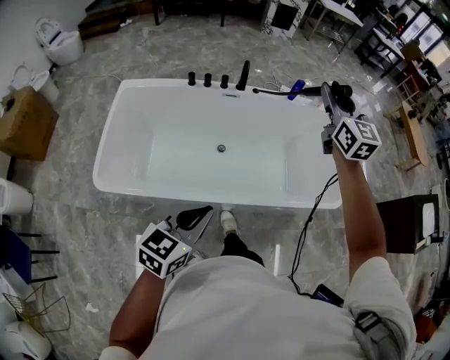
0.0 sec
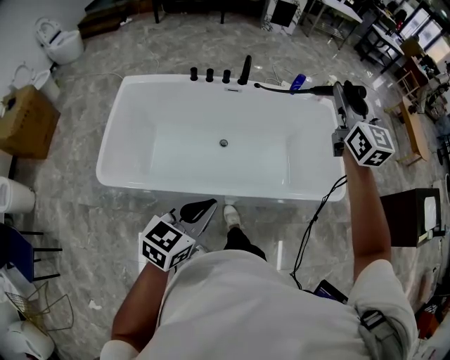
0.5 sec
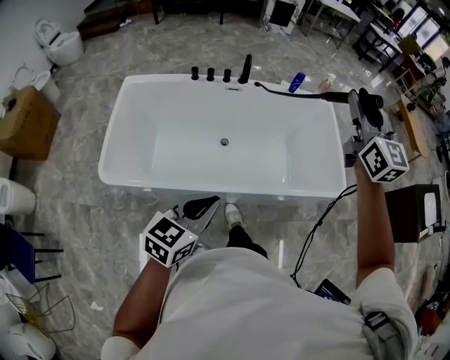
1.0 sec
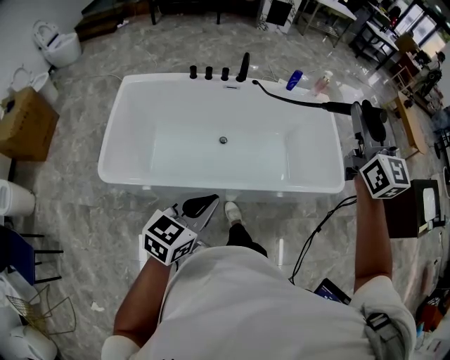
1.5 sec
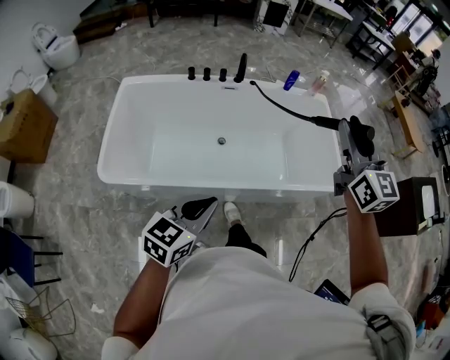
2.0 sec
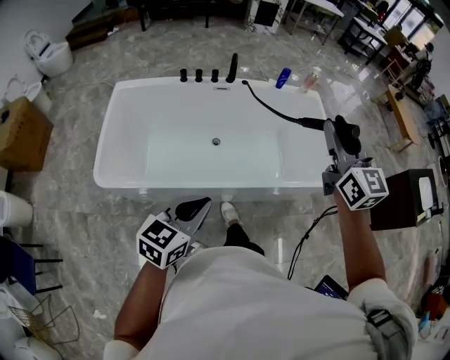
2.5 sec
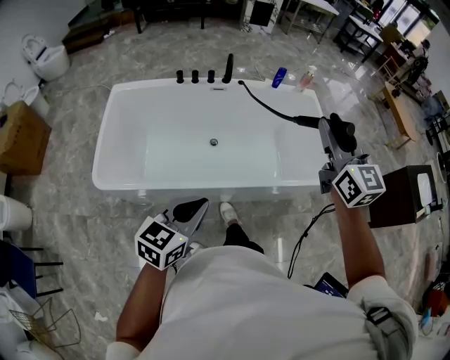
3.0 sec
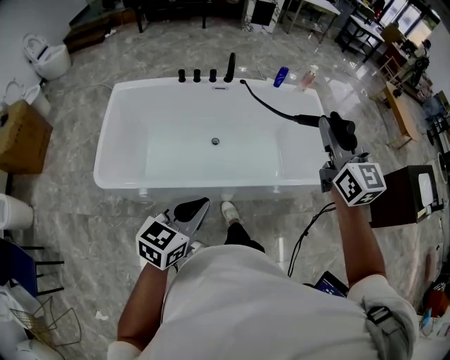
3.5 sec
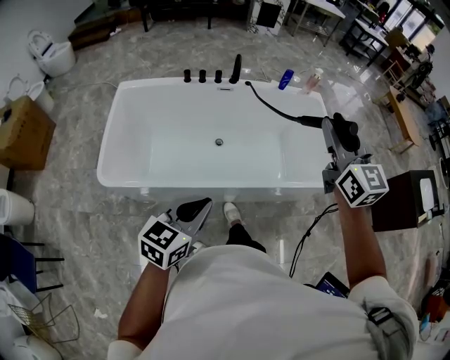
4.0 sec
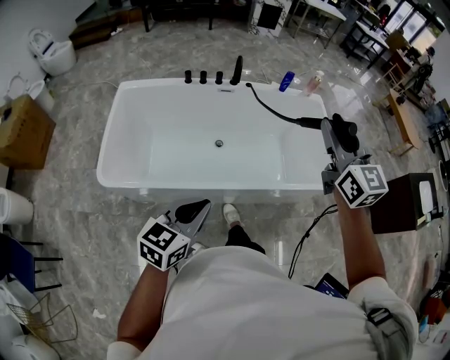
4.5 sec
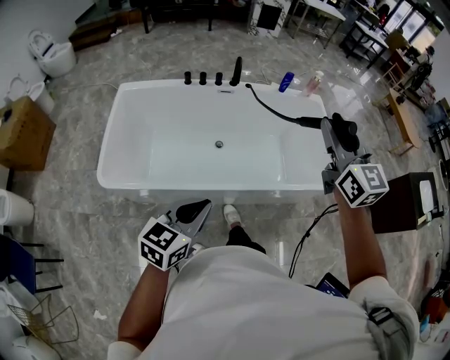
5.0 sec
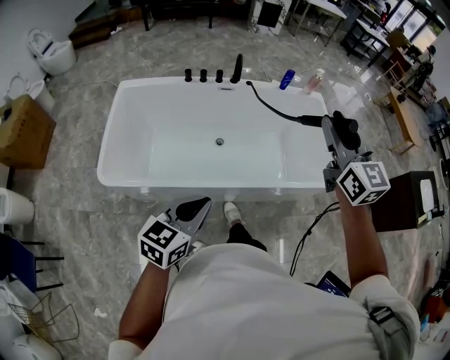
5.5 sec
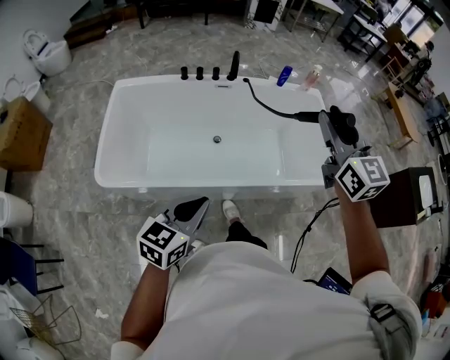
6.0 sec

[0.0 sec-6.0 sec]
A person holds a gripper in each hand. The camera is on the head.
0.0 sec to 2.0 sec: The right gripper shifts some 20 cm backward; the left gripper is displaced backward by approximately 5 cm.
2.0 sec to 4.0 sec: The grippers move only a little.
4.0 sec to 6.0 sec: Neither gripper changes place.

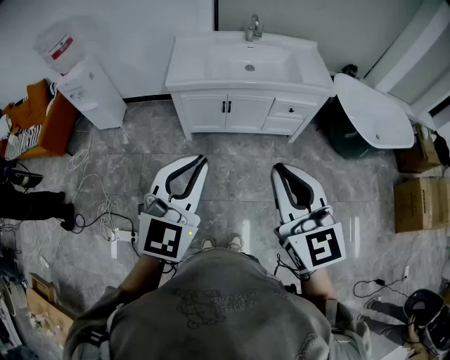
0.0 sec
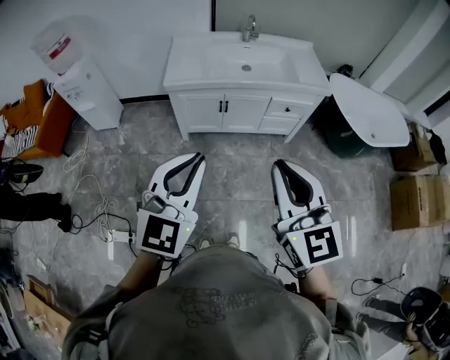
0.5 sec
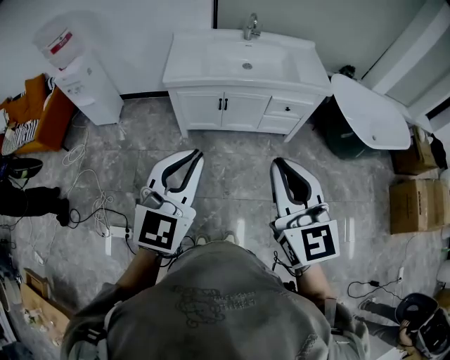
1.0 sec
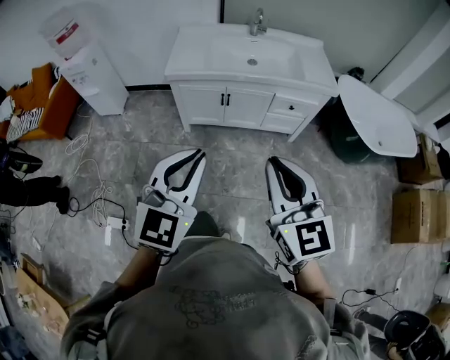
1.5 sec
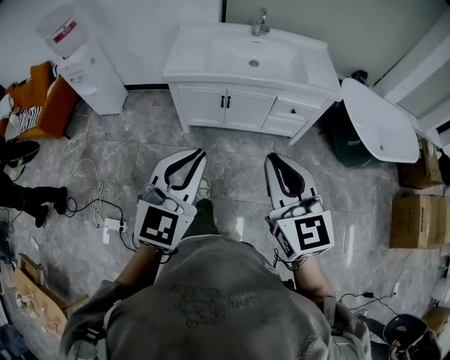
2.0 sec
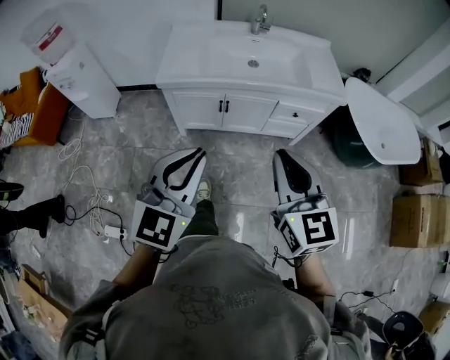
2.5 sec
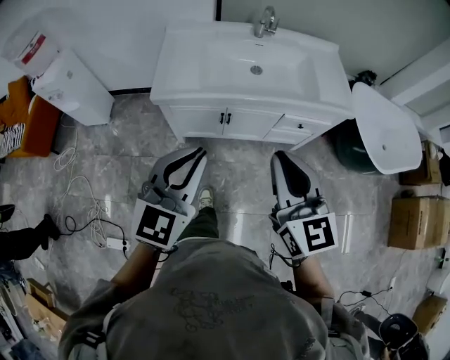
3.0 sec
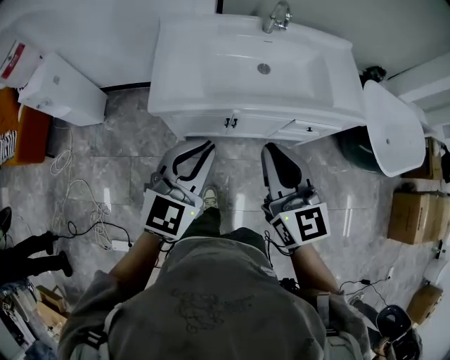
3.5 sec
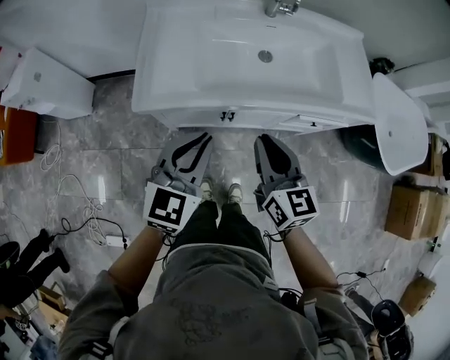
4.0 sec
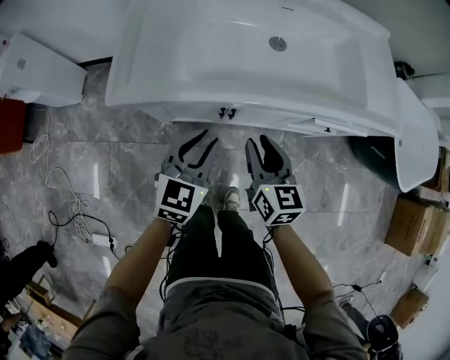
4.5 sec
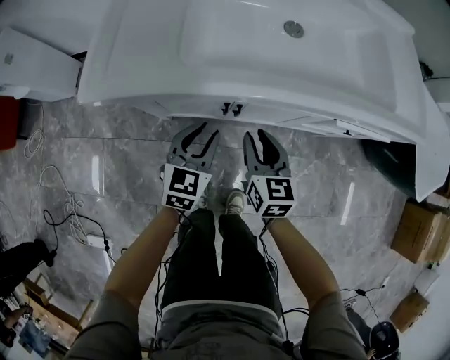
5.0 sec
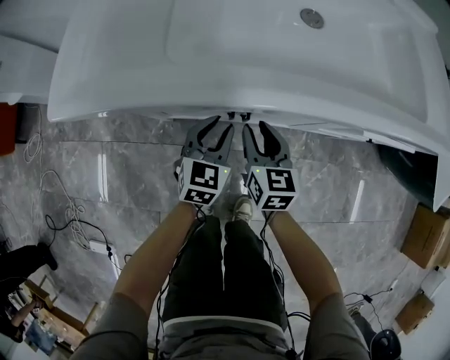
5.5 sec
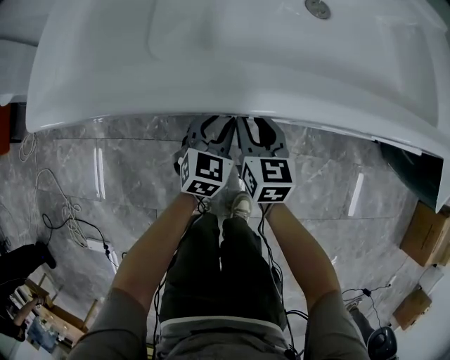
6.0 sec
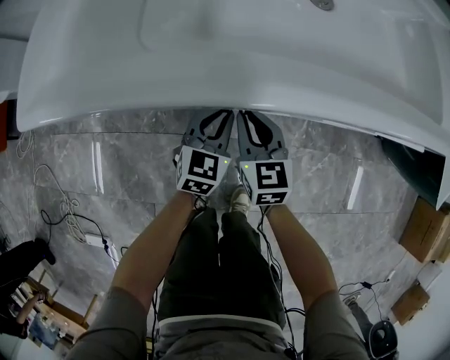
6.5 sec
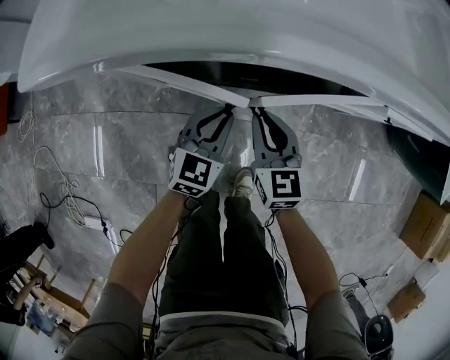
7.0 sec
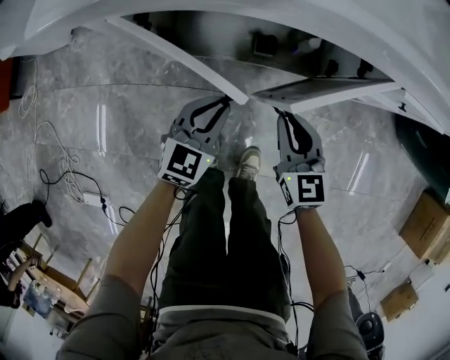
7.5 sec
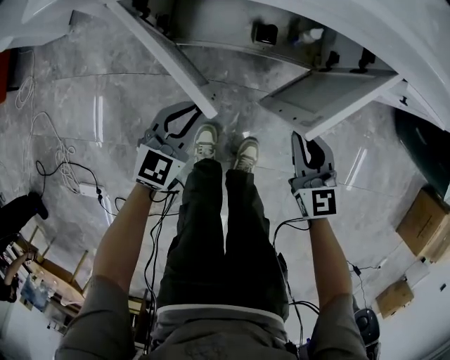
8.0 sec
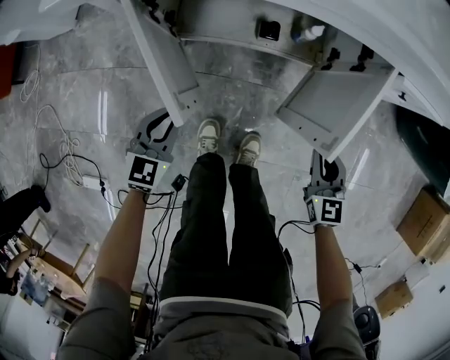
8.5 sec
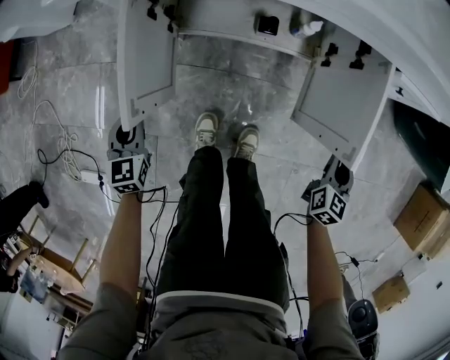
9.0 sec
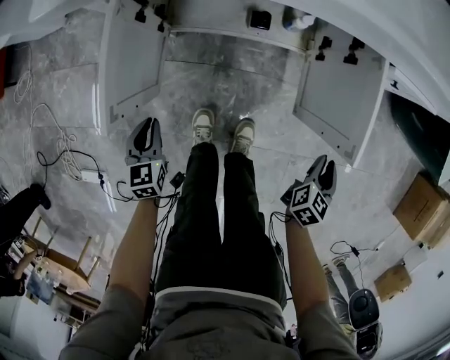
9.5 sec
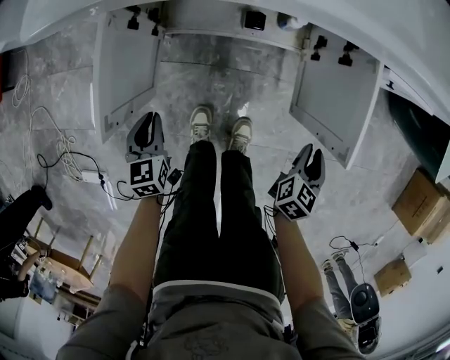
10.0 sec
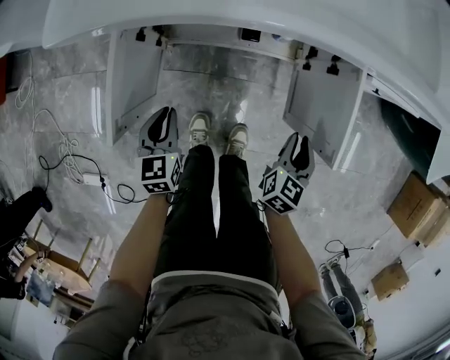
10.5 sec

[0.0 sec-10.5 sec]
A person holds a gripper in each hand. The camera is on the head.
0.0 sec to 2.0 sec: The right gripper travels forward and downward by approximately 10 cm; the left gripper moves about 10 cm.
2.0 sec to 4.0 sec: Both grippers are carried forward, approximately 40 cm. The right gripper goes some 20 cm downward, and swivels roughly 20 degrees.
4.0 sec to 6.5 sec: Both grippers travel together downward, approximately 40 cm. The right gripper opens, then closes once more.
6.5 sec to 8.5 sec: The left gripper shifts approximately 25 cm backward and to the left, while the right gripper shifts approximately 30 cm backward and to the right.
8.5 sec to 10.5 sec: The left gripper reaches about 10 cm to the left, then returns, and swivels approximately 30 degrees; the right gripper travels to the right and back again, approximately 10 cm each way, and turns by some 40 degrees.

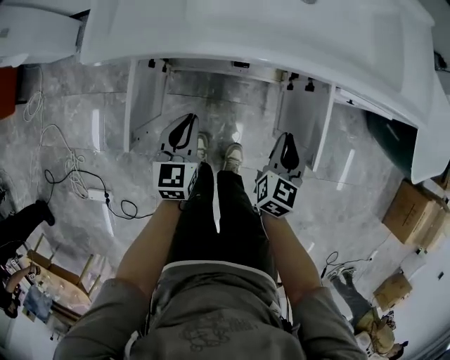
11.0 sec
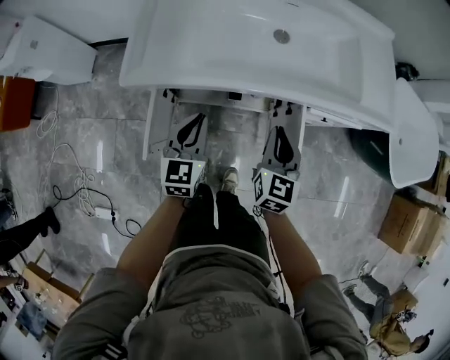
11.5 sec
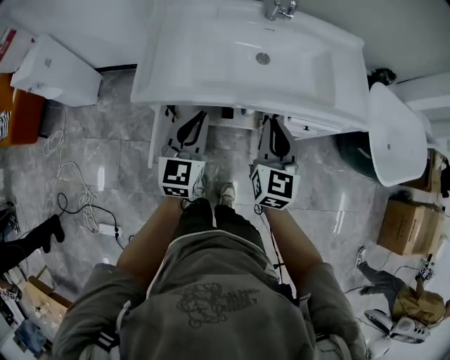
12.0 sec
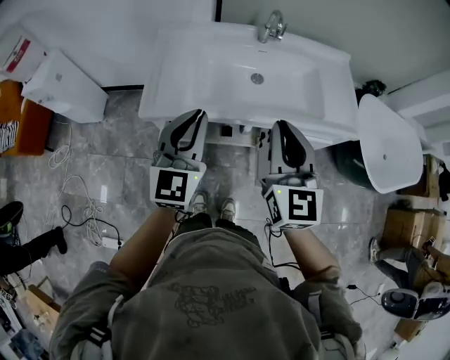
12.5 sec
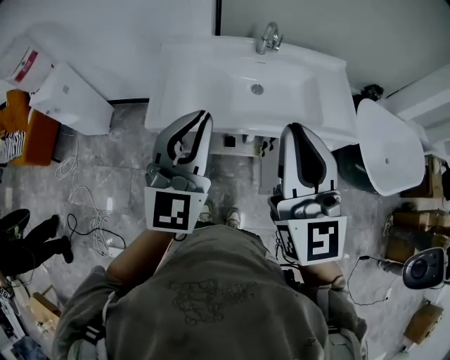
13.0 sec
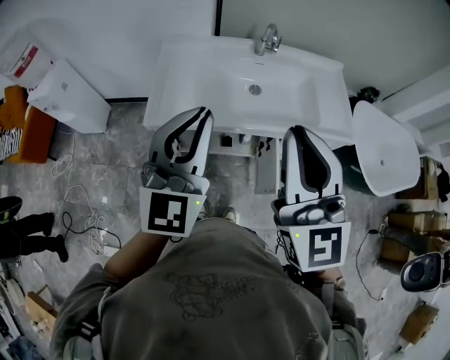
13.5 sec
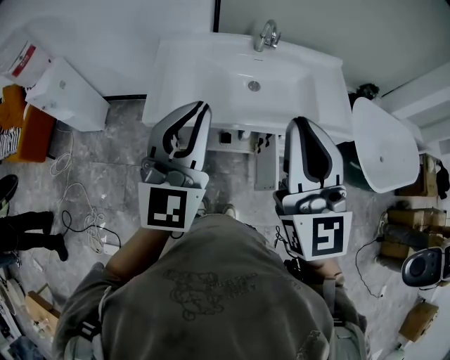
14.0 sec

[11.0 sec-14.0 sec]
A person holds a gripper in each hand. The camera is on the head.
11.0 sec to 12.5 sec: The two grippers go about 40 cm upward. The right gripper turns by about 40 degrees, while the left gripper rotates about 30 degrees.
12.5 sec to 14.0 sec: The two grippers go approximately 15 cm upward and backward.

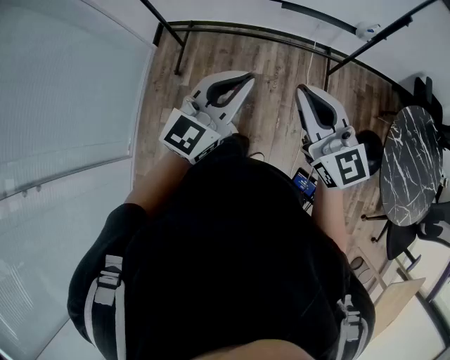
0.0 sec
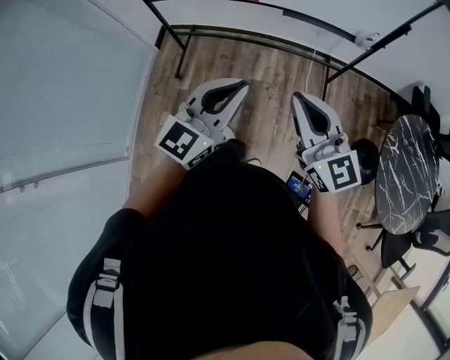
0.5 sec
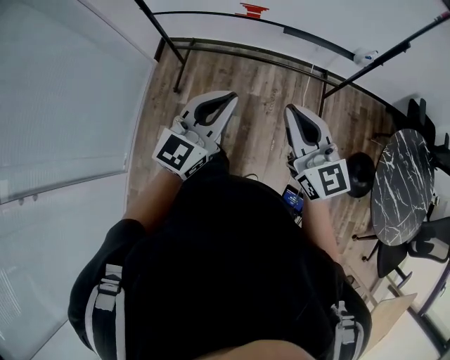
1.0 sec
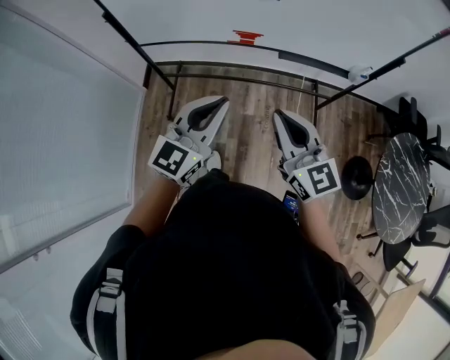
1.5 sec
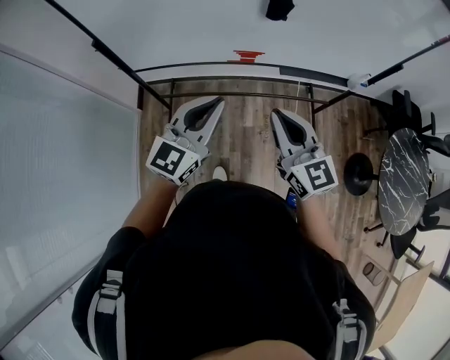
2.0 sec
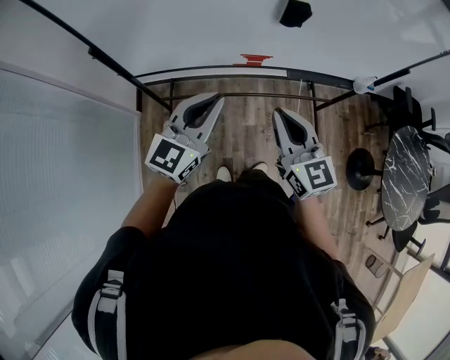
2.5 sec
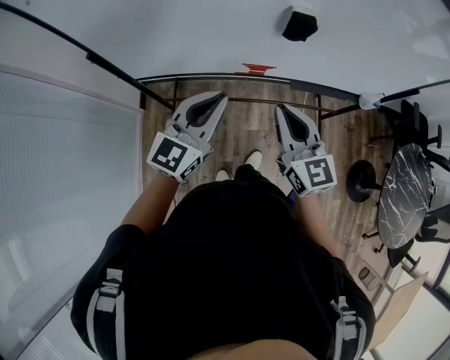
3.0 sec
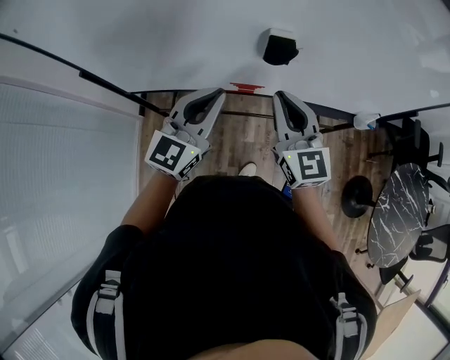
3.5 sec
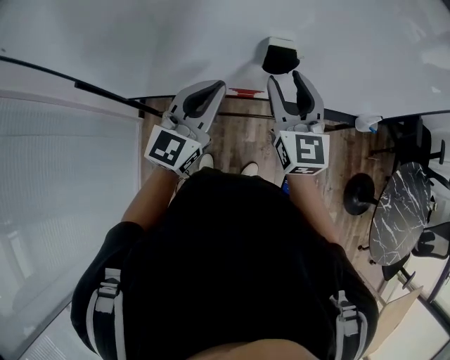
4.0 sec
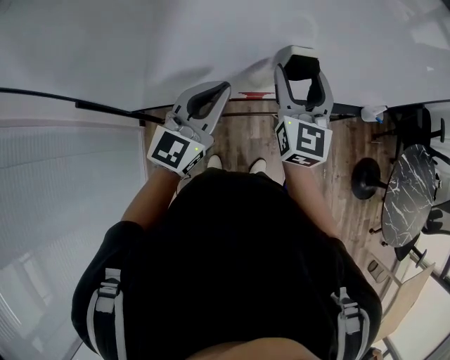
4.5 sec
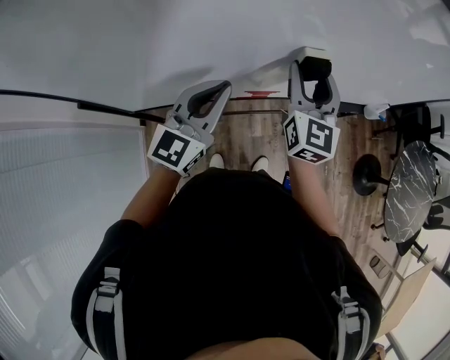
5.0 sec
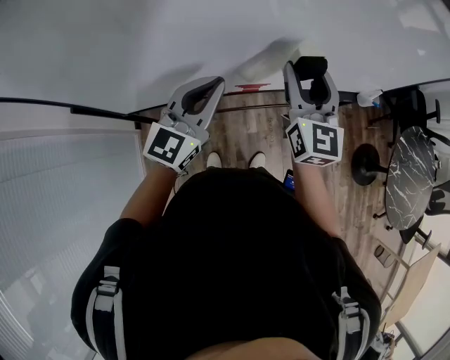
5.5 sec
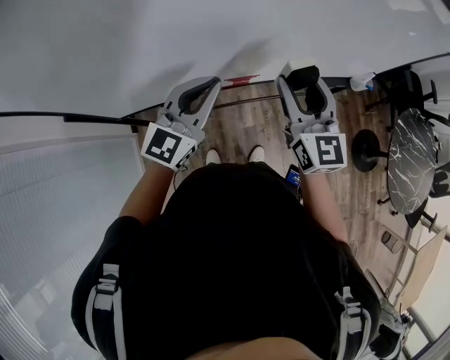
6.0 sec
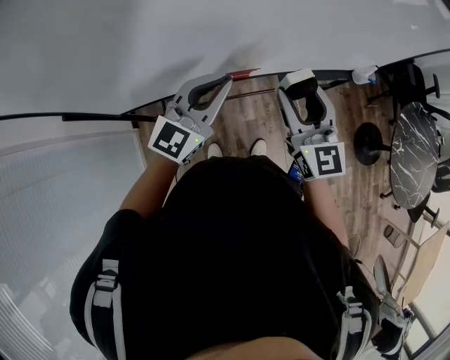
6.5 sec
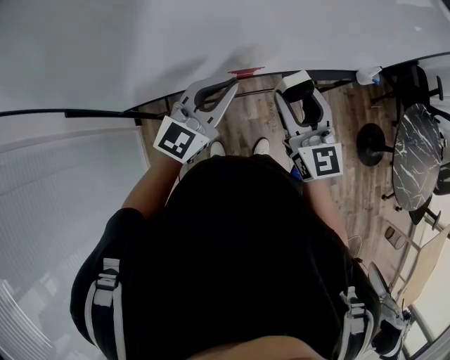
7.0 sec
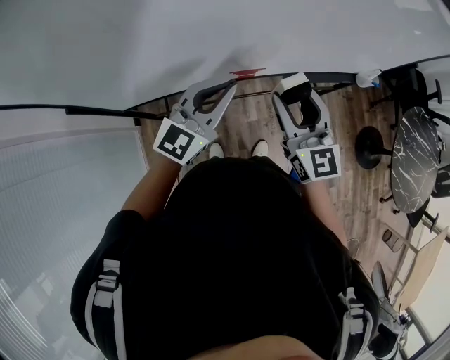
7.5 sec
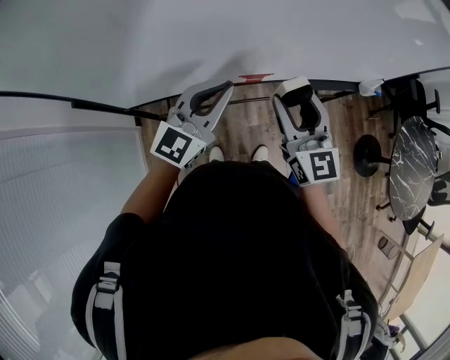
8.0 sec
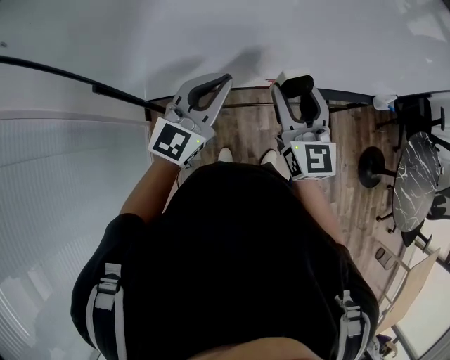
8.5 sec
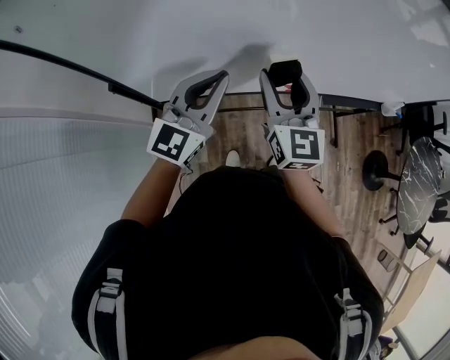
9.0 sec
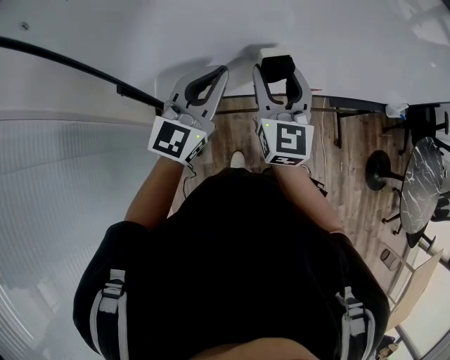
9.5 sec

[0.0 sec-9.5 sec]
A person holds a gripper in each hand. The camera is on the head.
0.0 sec to 2.0 sec: Both grippers move forward and to the left, some 30 cm.
2.0 sec to 4.0 sec: The grippers both shift forward by about 25 cm. The right gripper opens its fingers.
4.0 sec to 5.5 sec: The left gripper moves to the left, about 5 cm.
5.5 sec to 7.5 sec: The right gripper heads backward and downward, covering approximately 10 cm. The left gripper ends up roughly 5 cm from where it was.
7.5 sec to 9.5 sec: Both grippers travel together to the left, approximately 25 cm.
